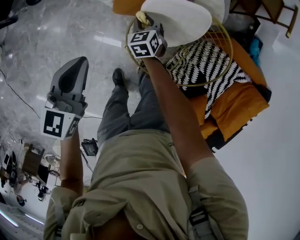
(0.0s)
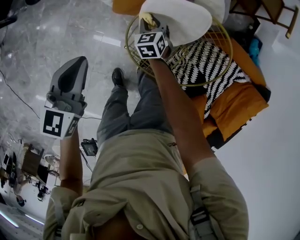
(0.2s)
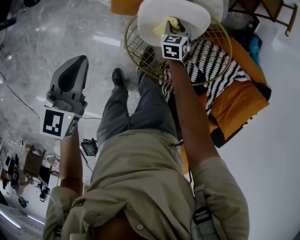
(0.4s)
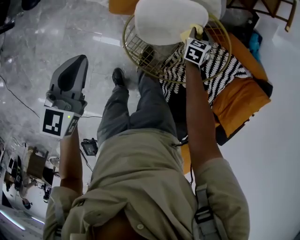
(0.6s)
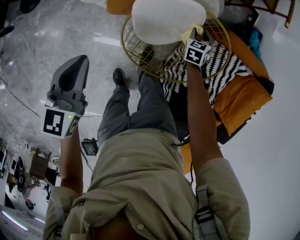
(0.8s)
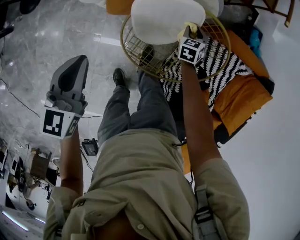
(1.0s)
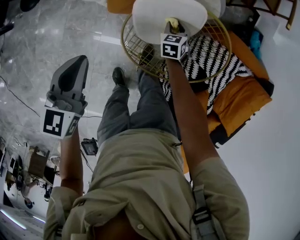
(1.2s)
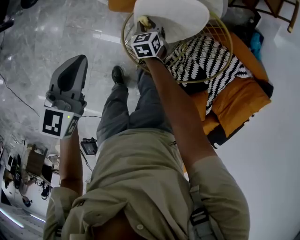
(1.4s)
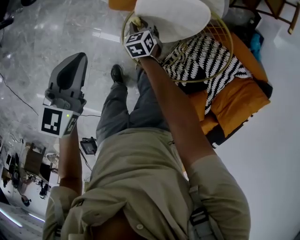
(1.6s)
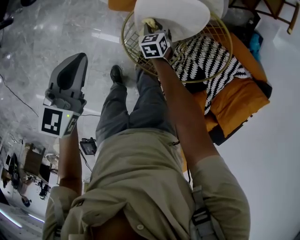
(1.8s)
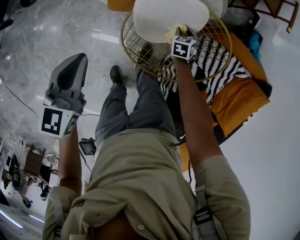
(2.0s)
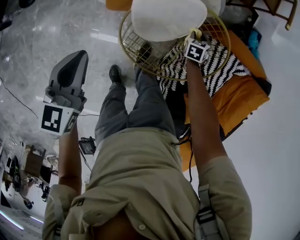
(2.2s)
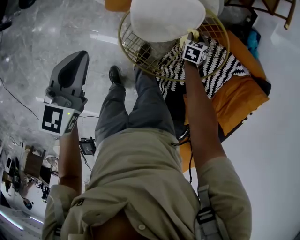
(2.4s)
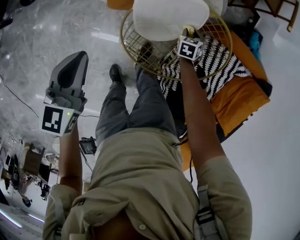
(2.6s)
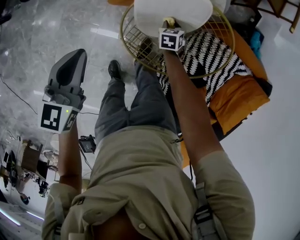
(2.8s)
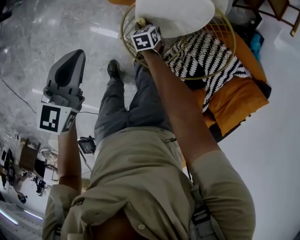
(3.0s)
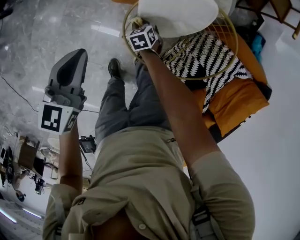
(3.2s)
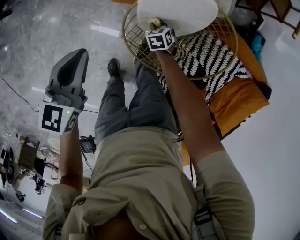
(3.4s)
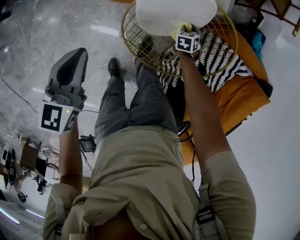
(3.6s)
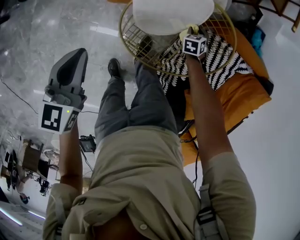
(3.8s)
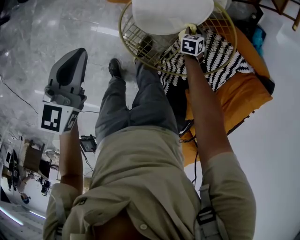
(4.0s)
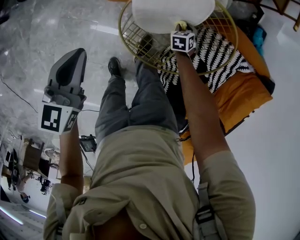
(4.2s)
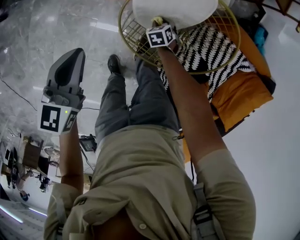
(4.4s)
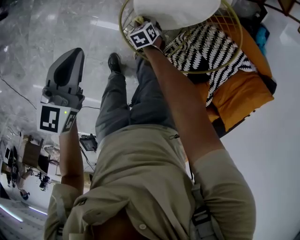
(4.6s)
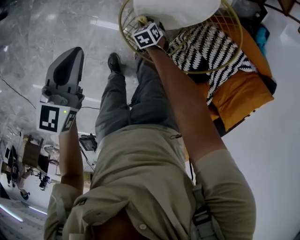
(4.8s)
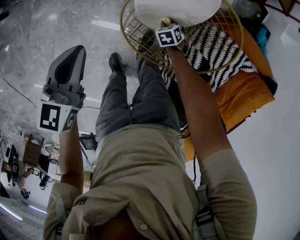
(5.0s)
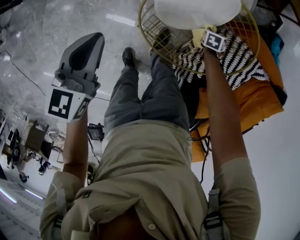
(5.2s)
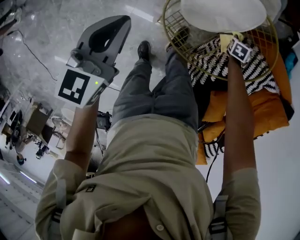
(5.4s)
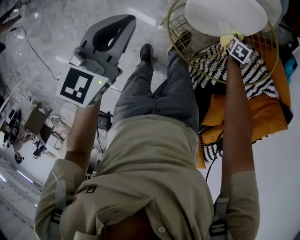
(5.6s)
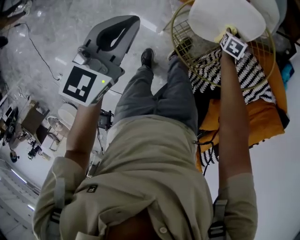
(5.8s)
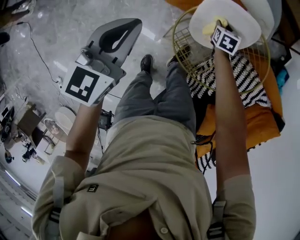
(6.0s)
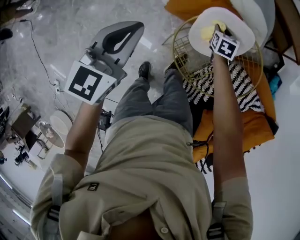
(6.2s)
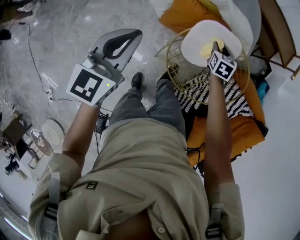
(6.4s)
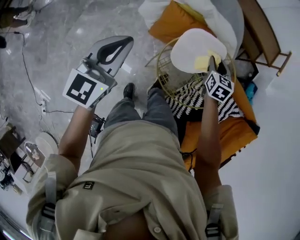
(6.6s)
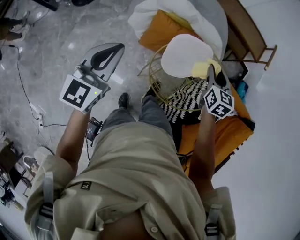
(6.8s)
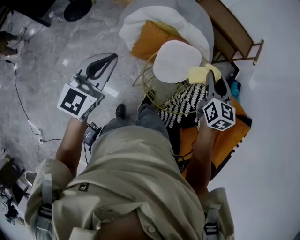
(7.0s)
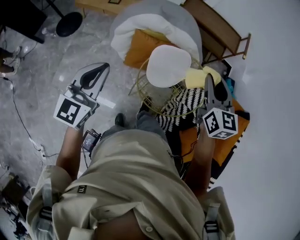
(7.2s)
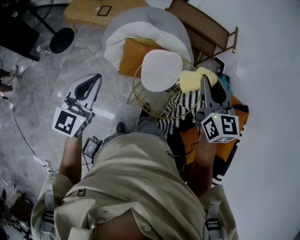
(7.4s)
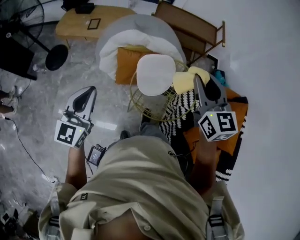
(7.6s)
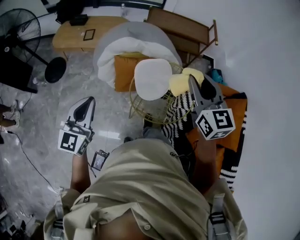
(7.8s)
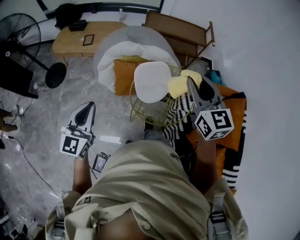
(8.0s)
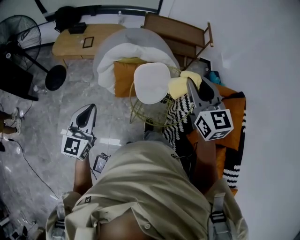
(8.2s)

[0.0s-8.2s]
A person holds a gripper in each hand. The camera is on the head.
0.0s to 1.6s: The right gripper travels downward by some 5 cm, and travels to the right and back again, some 30 cm each way.
1.6s to 3.2s: The right gripper moves downward, about 5 cm.
5.0s to 6.6s: The right gripper shifts approximately 40 cm upward, and tilts its fingers approximately 30 degrees upward. Meanwhile the left gripper is displaced upward by about 20 cm.
6.6s to 8.2s: The right gripper travels upward and backward by approximately 40 cm, and tilts its fingers approximately 30 degrees upward; the left gripper heads backward and upward, covering roughly 15 cm.

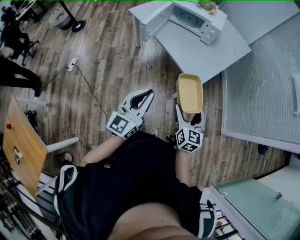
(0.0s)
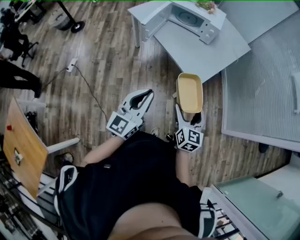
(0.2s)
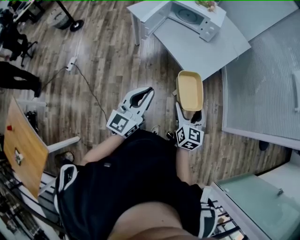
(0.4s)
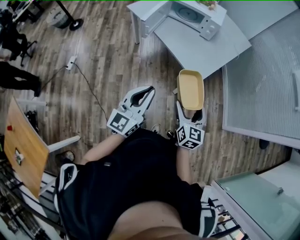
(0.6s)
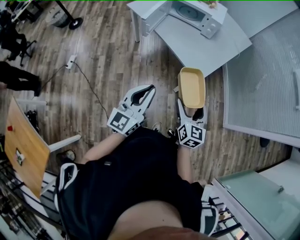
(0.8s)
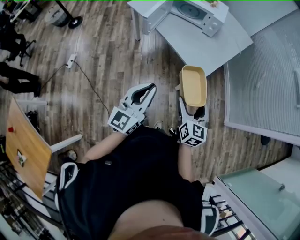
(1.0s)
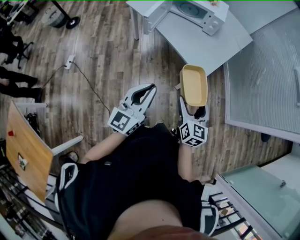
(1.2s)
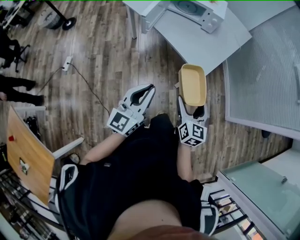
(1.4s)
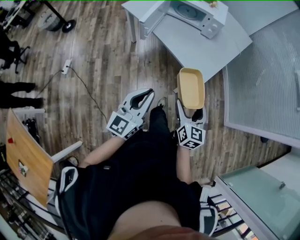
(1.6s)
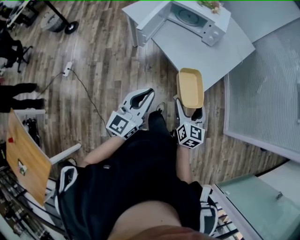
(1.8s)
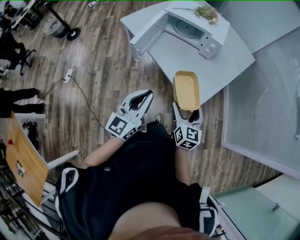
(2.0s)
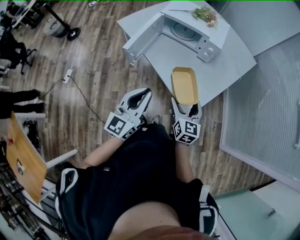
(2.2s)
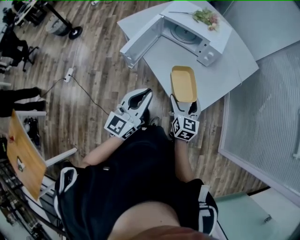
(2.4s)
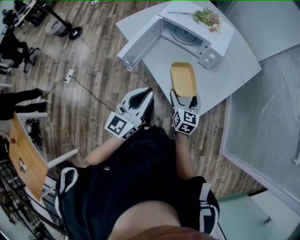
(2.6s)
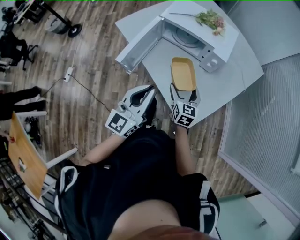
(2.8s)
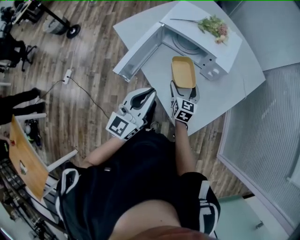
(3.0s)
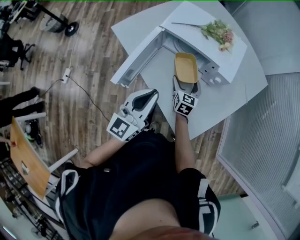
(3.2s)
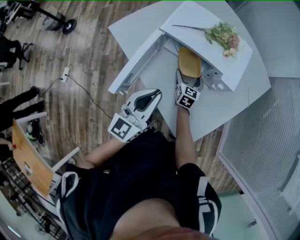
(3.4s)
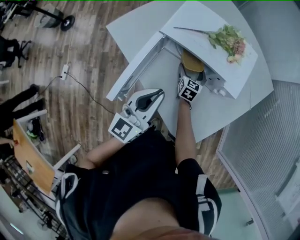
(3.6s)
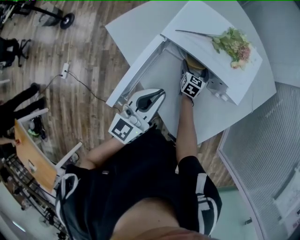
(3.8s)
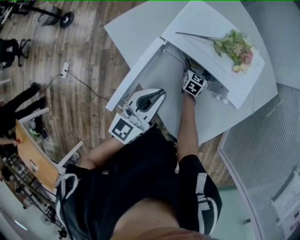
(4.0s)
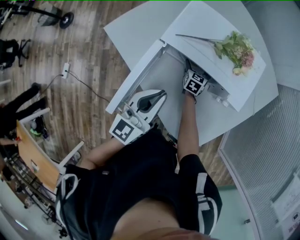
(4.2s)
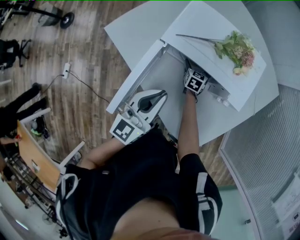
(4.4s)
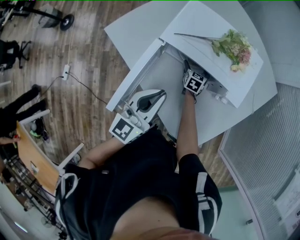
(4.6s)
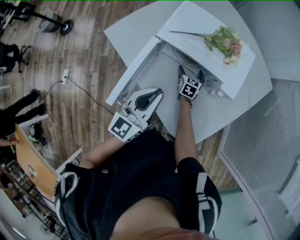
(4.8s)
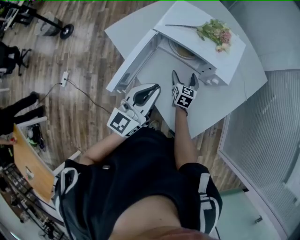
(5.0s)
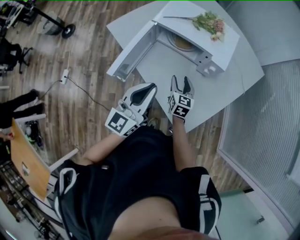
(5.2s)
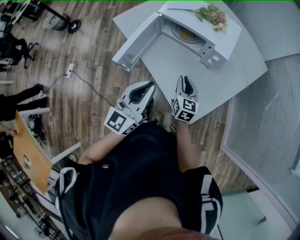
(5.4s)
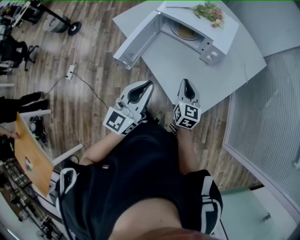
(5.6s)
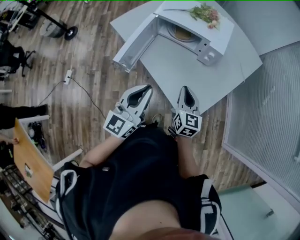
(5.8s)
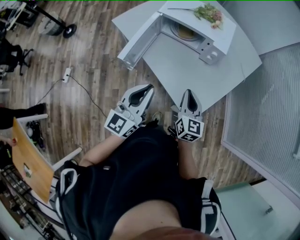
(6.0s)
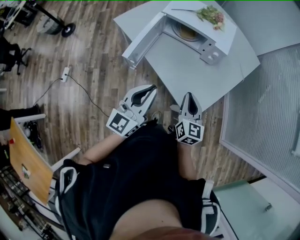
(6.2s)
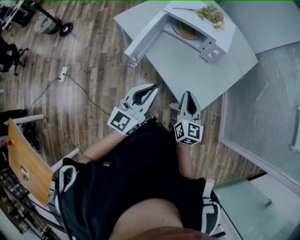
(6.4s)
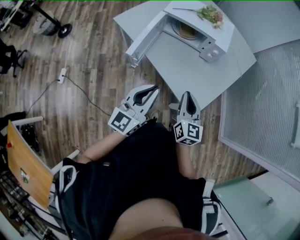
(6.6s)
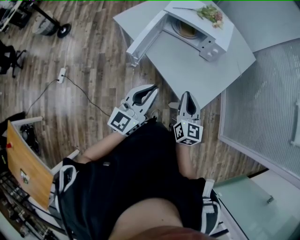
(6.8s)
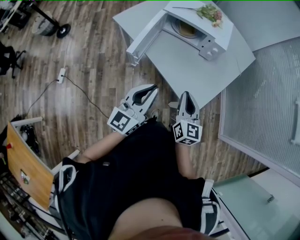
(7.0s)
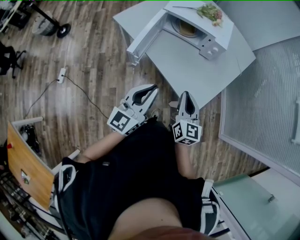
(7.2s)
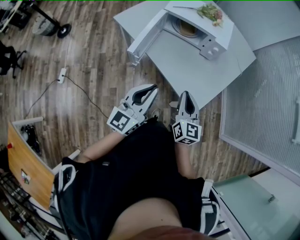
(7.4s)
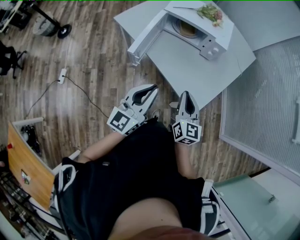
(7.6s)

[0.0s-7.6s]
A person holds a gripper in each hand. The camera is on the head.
0.0s to 1.6s: Both grippers move to the left and forward, some 10 cm.
1.6s to 3.0s: The pair of grippers is taken forward, some 50 cm.
3.0s to 4.6s: The left gripper heads forward, covering approximately 20 cm. The right gripper moves forward and downward, approximately 35 cm.
4.6s to 6.0s: The right gripper heads backward and upward, covering about 50 cm, rotates roughly 30 degrees, and closes. Meanwhile the left gripper heads backward, covering approximately 30 cm.
6.0s to 7.6s: The left gripper moves backward, about 5 cm. Meanwhile the right gripper is displaced backward and to the left by about 10 cm.

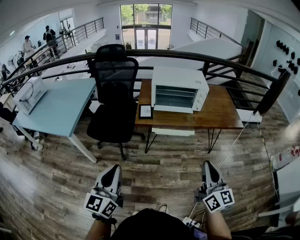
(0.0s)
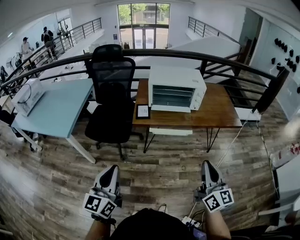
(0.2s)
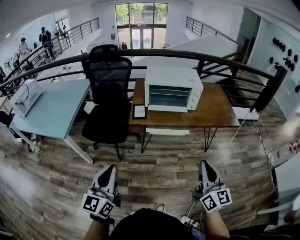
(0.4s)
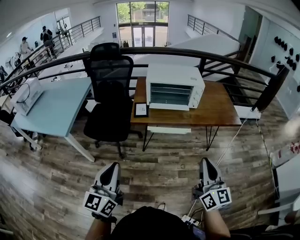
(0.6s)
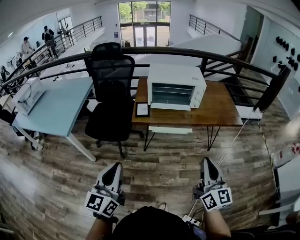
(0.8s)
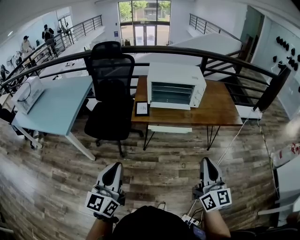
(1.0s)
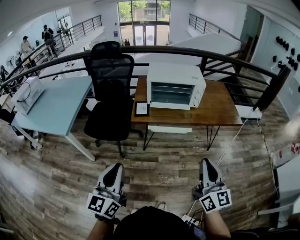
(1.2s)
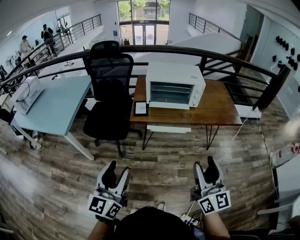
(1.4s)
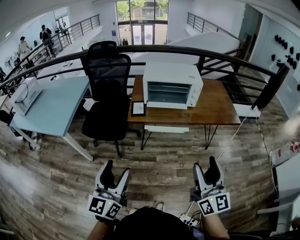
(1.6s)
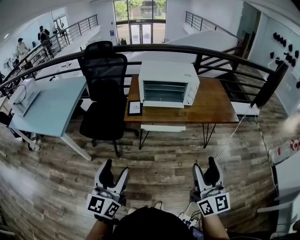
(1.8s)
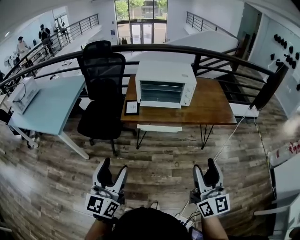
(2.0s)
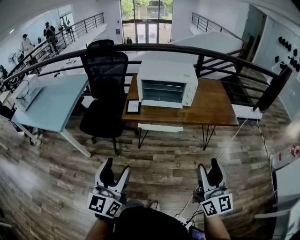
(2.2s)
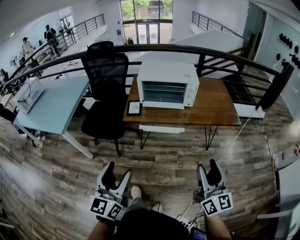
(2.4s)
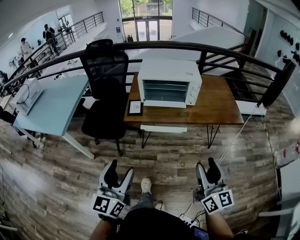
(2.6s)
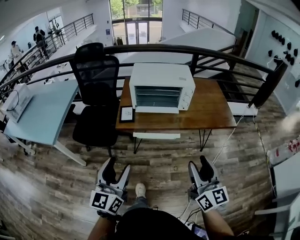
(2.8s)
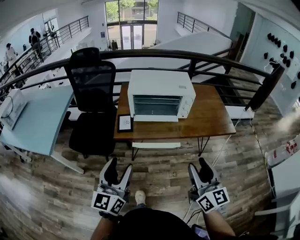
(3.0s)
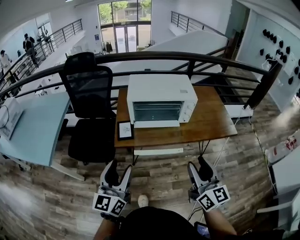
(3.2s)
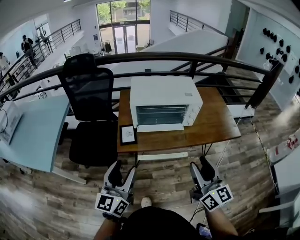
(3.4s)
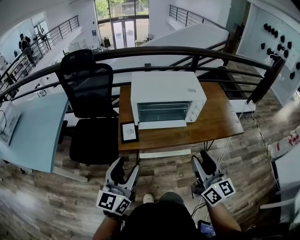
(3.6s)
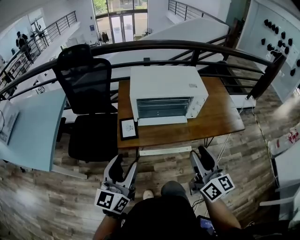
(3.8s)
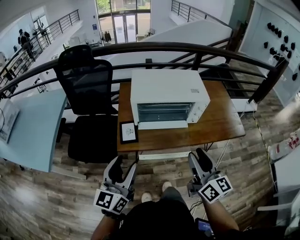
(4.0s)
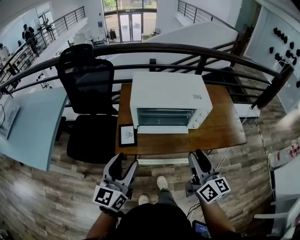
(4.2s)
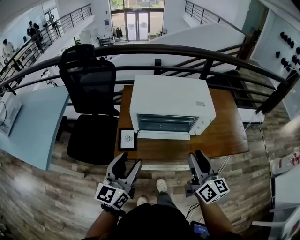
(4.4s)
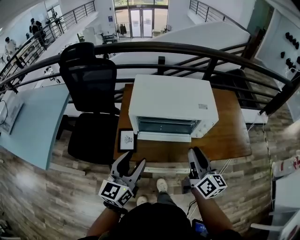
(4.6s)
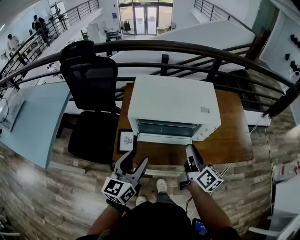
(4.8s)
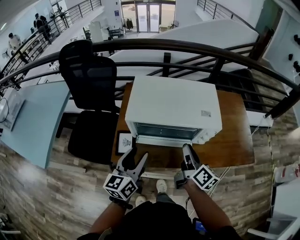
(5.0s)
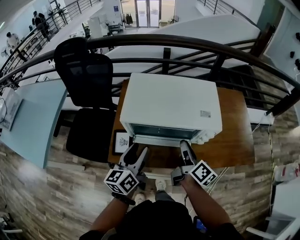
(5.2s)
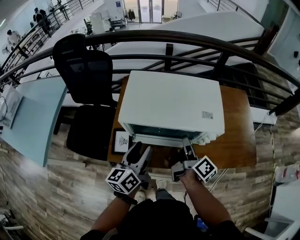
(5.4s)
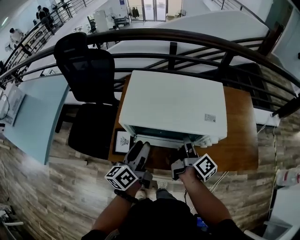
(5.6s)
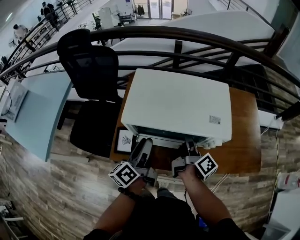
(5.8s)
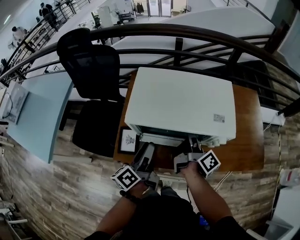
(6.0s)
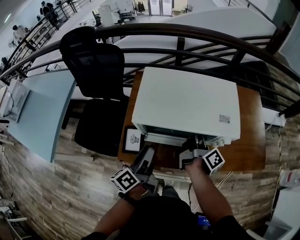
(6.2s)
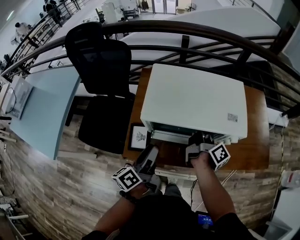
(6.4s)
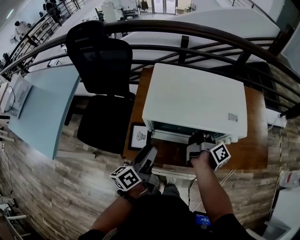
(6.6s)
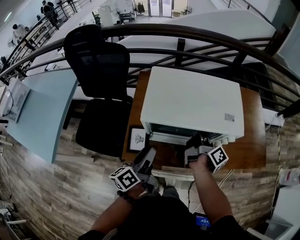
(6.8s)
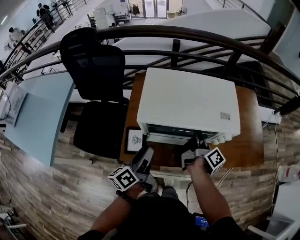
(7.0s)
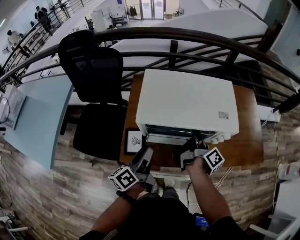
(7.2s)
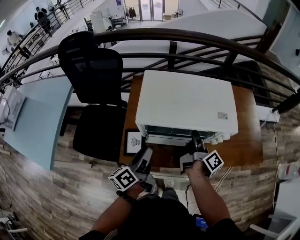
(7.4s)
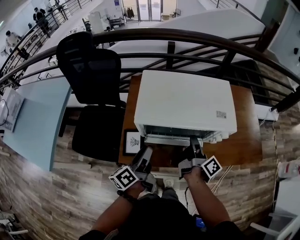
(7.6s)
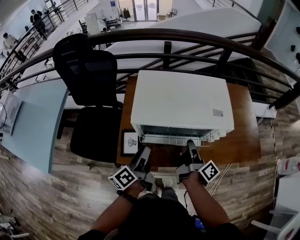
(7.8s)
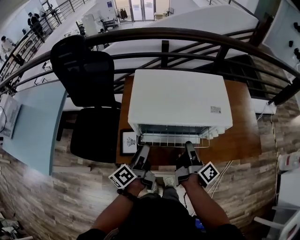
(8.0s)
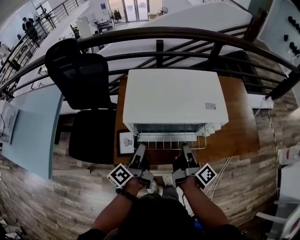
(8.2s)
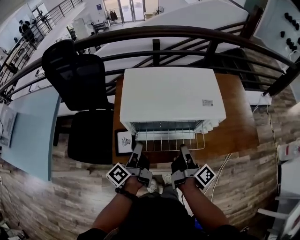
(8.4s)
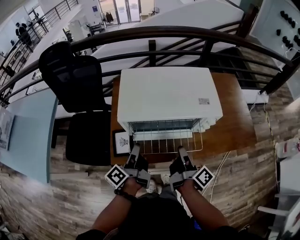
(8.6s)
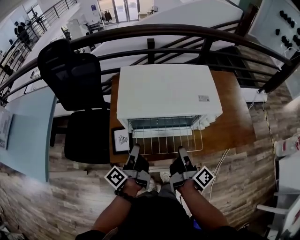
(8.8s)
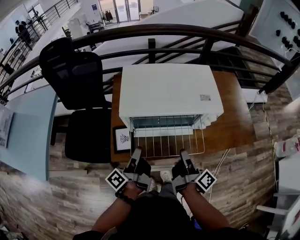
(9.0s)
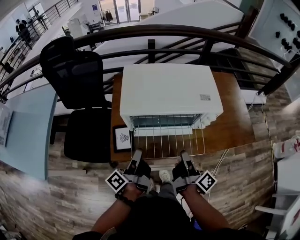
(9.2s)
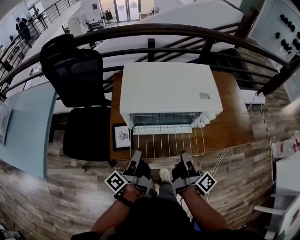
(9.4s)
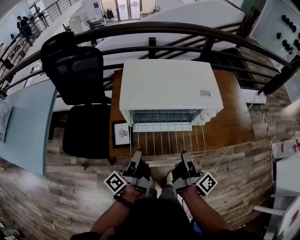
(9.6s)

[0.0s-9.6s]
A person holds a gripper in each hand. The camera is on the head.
0.0s to 1.6s: The right gripper opens its fingers; the left gripper travels to the right by approximately 5 cm, and opens up.
1.6s to 3.2s: Both grippers move forward, approximately 20 cm.
3.2s to 4.8s: Both grippers travel together forward, some 25 cm. The right gripper turns by roughly 40 degrees.
4.8s to 6.4s: The left gripper moves forward and downward, about 10 cm, and twists approximately 40 degrees counterclockwise, seen from behind, while the right gripper shifts roughly 15 cm forward, and rotates approximately 30 degrees.
6.4s to 8.0s: The right gripper shifts roughly 10 cm backward.
8.0s to 9.6s: The right gripper travels backward by roughly 10 cm; the left gripper heads backward, covering approximately 5 cm, turns by approximately 30 degrees, and closes up.
